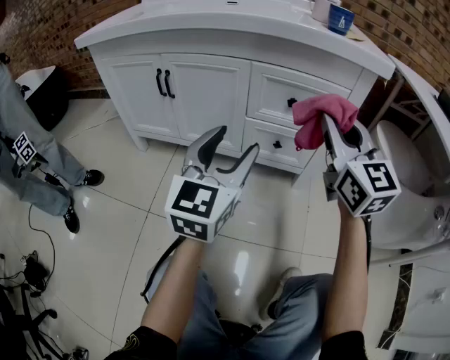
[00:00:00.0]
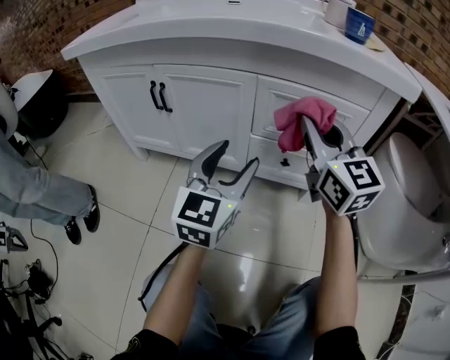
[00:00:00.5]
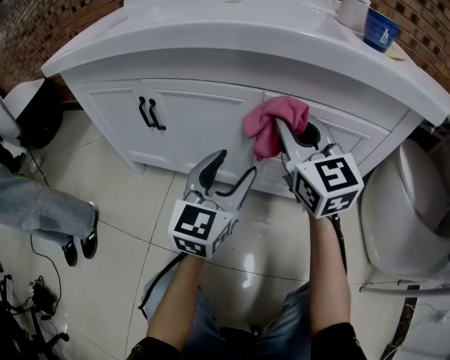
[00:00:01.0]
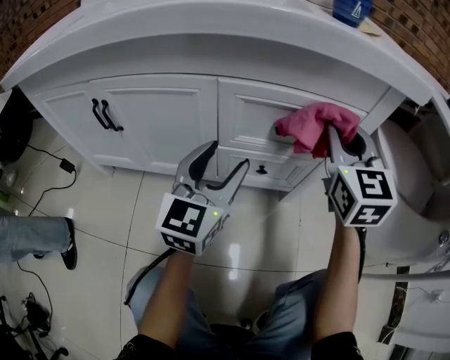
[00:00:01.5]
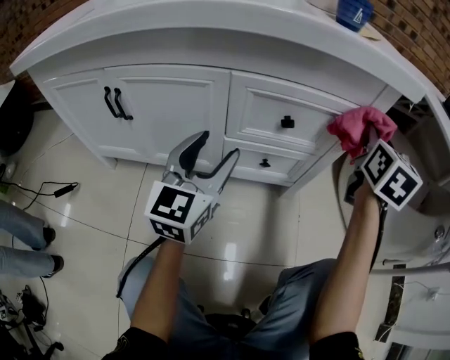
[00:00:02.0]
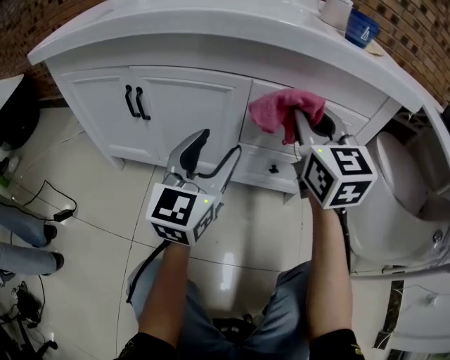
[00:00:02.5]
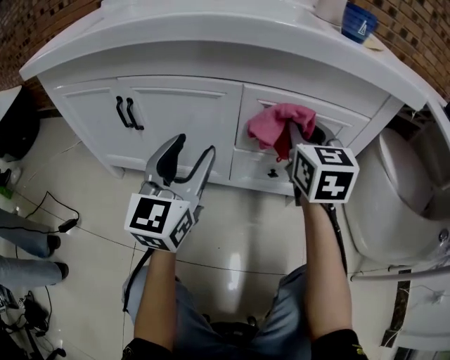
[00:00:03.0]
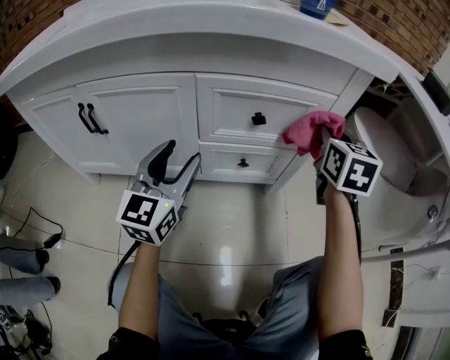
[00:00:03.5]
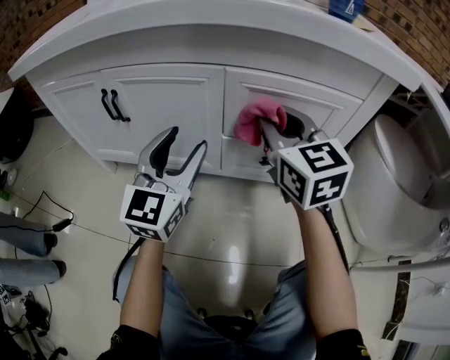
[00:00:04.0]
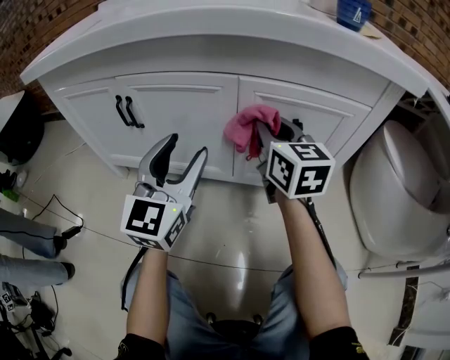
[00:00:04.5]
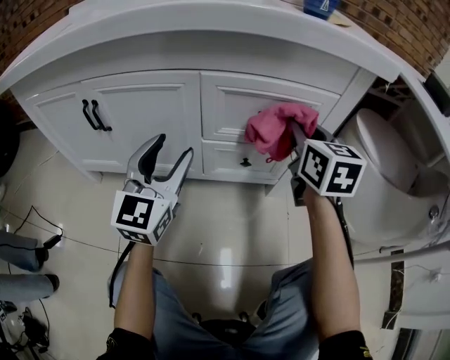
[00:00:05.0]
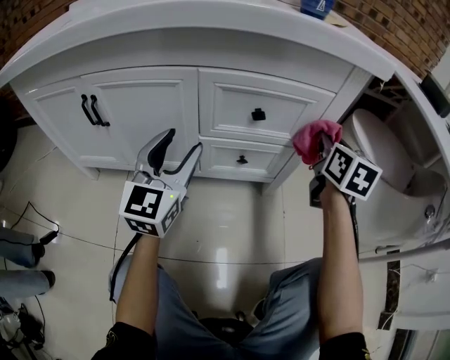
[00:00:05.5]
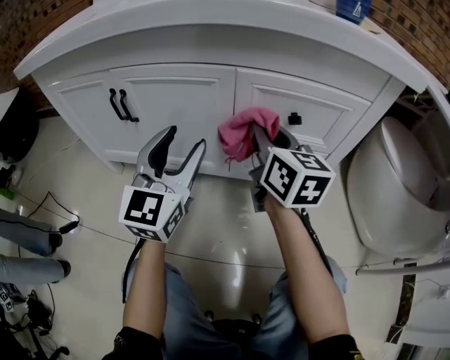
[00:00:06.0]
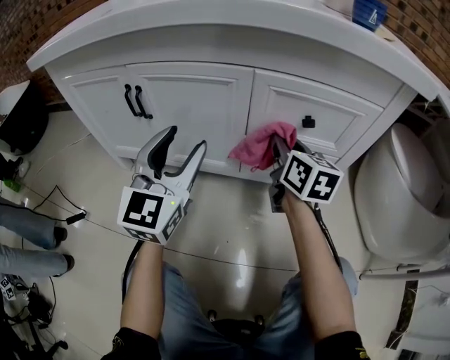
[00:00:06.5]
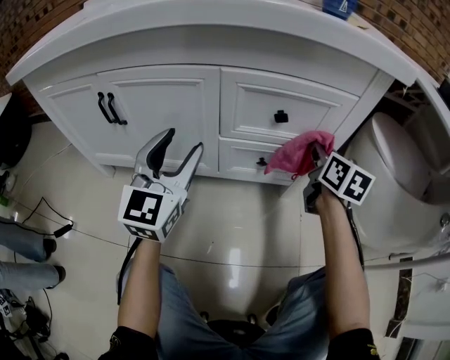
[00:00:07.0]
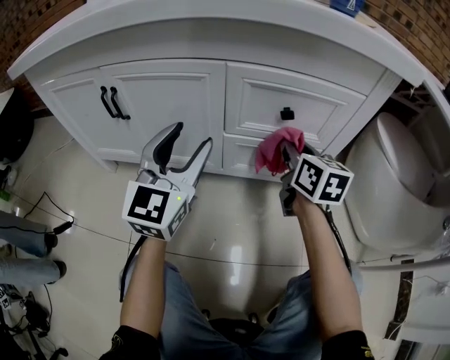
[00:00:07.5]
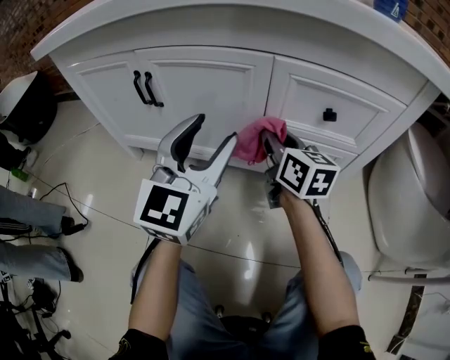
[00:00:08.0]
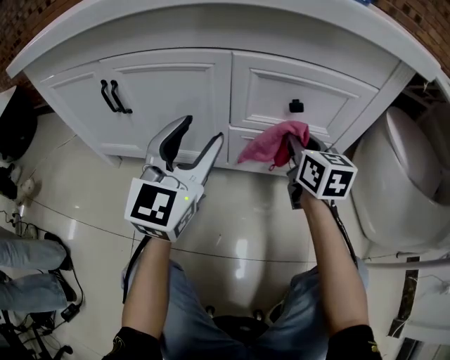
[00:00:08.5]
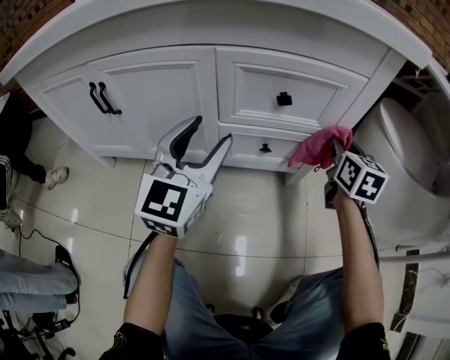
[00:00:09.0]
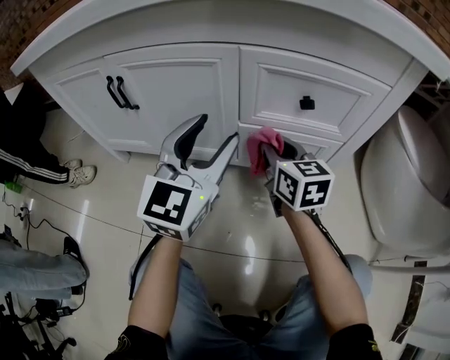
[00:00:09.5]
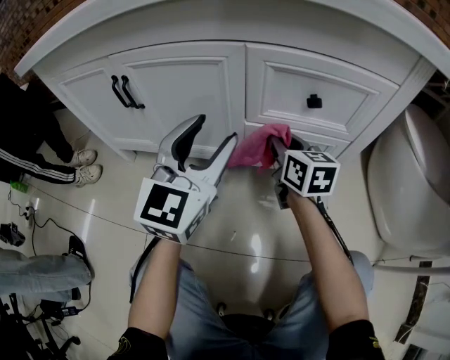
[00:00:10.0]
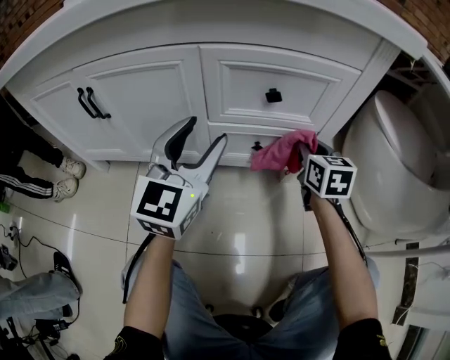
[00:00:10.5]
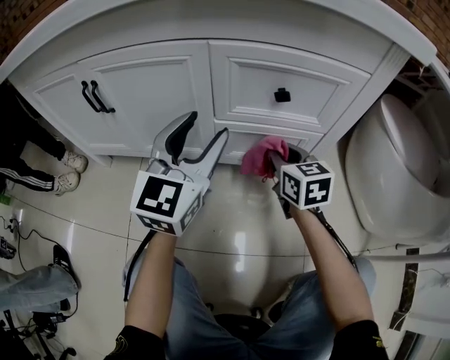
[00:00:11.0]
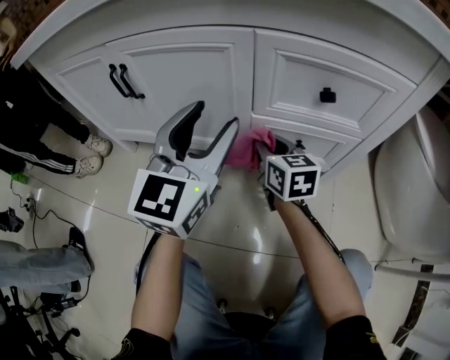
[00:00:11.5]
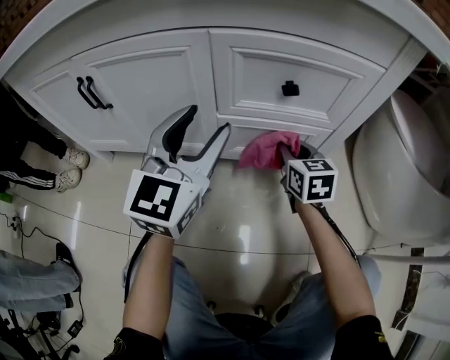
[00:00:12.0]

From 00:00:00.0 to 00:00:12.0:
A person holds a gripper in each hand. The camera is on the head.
From 00:00:00.0 to 00:00:02.0: The right gripper changes place by about 25 cm, and swivels some 50 degrees; the left gripper ends up some 15 cm from where it was.
From 00:00:02.0 to 00:00:04.0: The left gripper moves to the left, roughly 5 cm, while the right gripper moves left and right over approximately 25 cm, changing direction 2 times, and changes its angle by roughly 40 degrees.
From 00:00:04.0 to 00:00:06.0: The right gripper travels to the right and back again, roughly 25 cm each way, and rotates some 30 degrees.
From 00:00:06.0 to 00:00:08.0: The right gripper is displaced downward by approximately 10 cm, and reaches some 20 cm to the right, then returns.
From 00:00:08.0 to 00:00:10.0: The right gripper goes some 5 cm downward, and travels to the right and back again, some 30 cm each way.
From 00:00:10.0 to 00:00:12.0: The left gripper moves left and right over roughly 5 cm, changing direction 2 times. Meanwhile the right gripper swings left and right, approximately 20 cm each way, with 2 reversals.

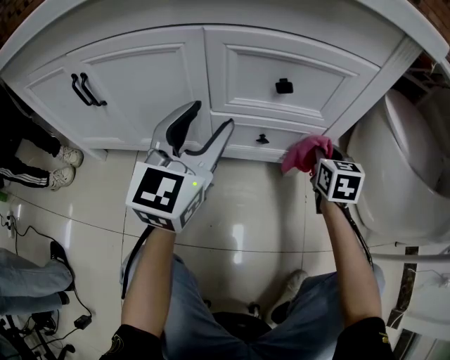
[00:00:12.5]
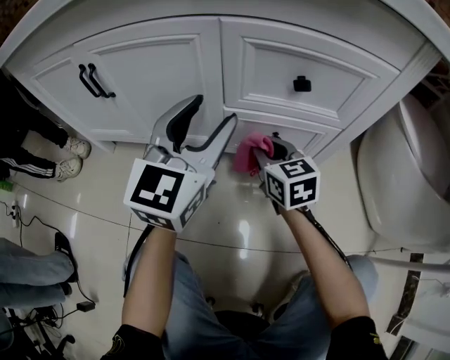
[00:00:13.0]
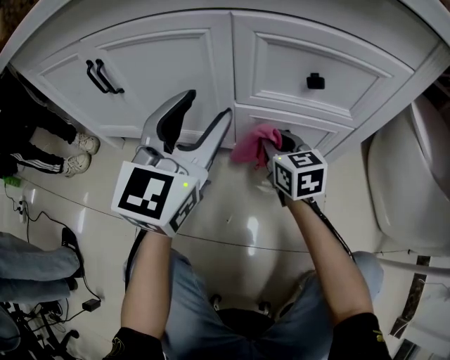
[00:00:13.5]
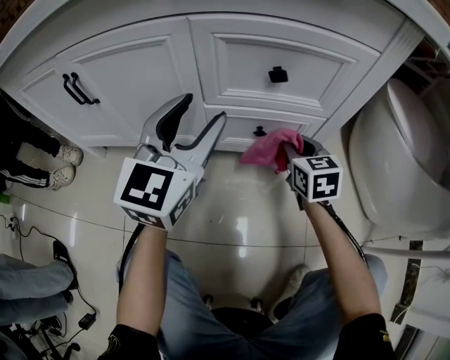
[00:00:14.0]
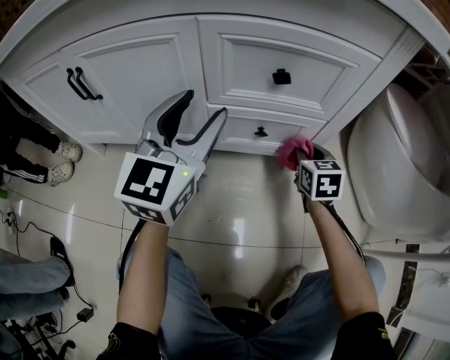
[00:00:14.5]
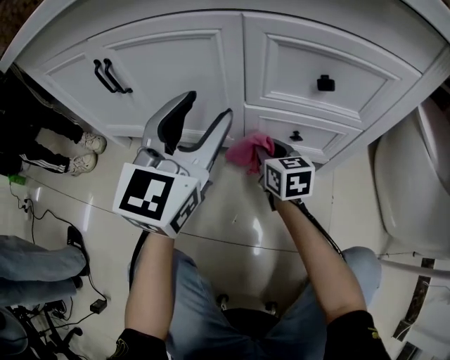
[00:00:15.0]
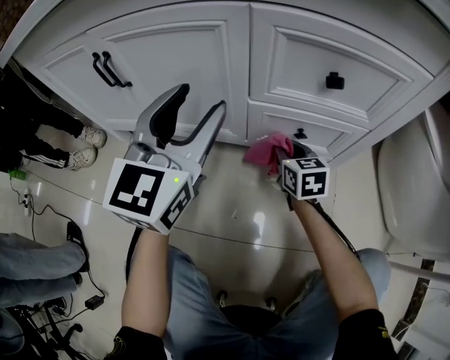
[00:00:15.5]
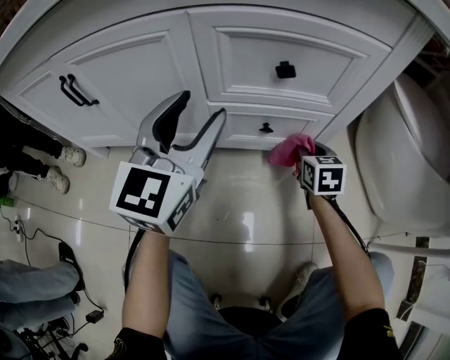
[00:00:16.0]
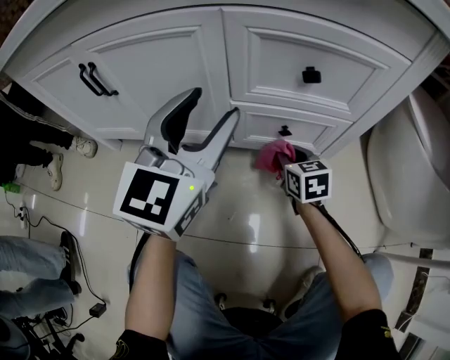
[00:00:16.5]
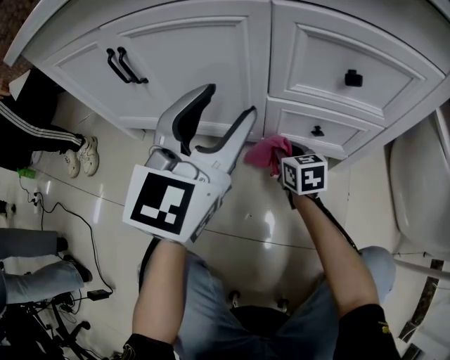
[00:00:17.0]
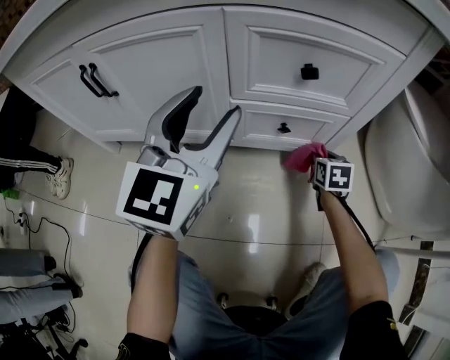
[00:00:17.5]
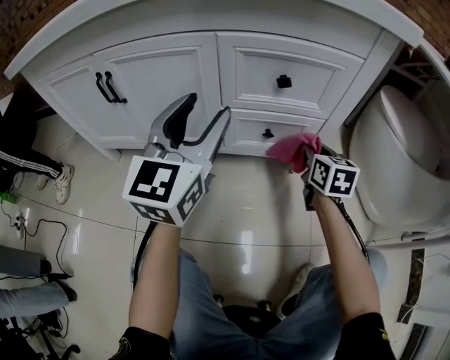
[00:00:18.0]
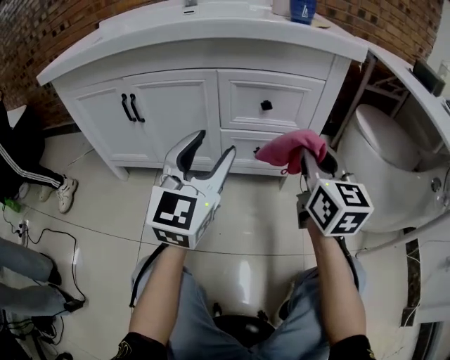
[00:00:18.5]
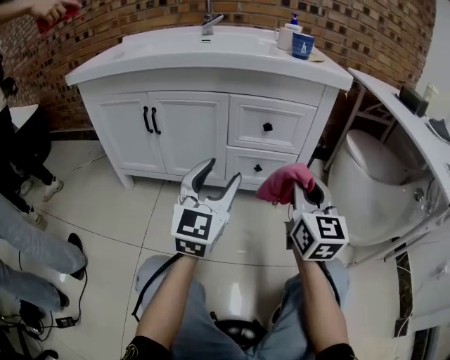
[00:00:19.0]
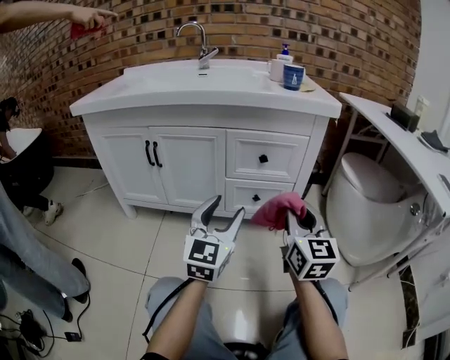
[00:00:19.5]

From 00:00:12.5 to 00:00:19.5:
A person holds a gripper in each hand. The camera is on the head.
From 00:00:12.5 to 00:00:14.5: The right gripper travels to the left and back again, some 20 cm each way.
From 00:00:14.5 to 00:00:16.0: The right gripper reaches some 20 cm to the left, then returns.
From 00:00:16.0 to 00:00:17.5: The right gripper reaches about 20 cm to the left, then returns.
From 00:00:17.5 to 00:00:19.5: The left gripper heads backward, covering some 15 cm. The right gripper travels upward and backward by about 40 cm, and tips its fingers upward by roughly 50 degrees.

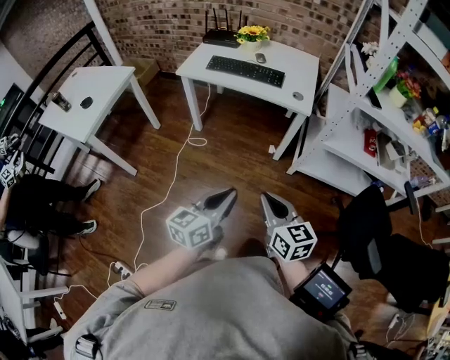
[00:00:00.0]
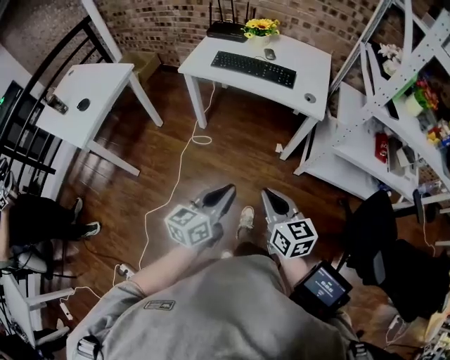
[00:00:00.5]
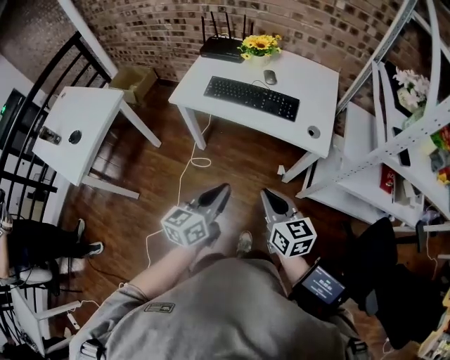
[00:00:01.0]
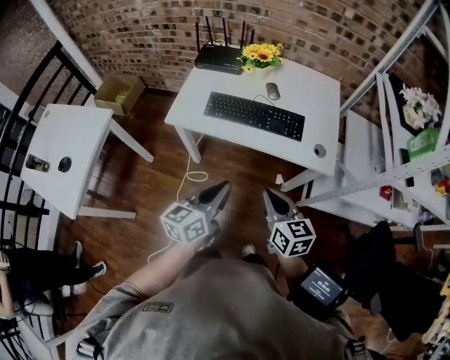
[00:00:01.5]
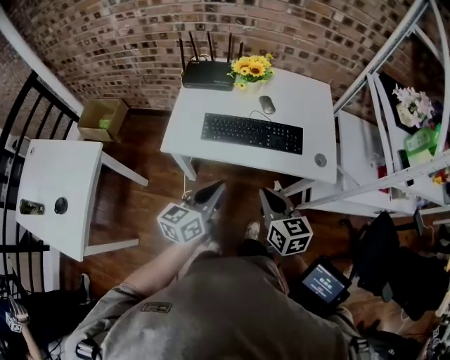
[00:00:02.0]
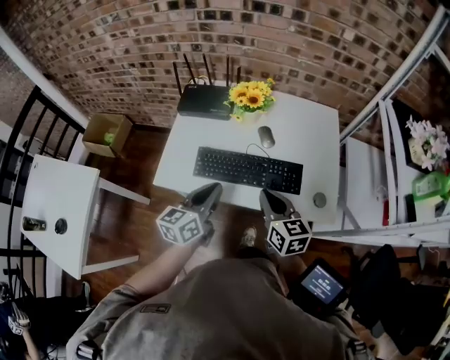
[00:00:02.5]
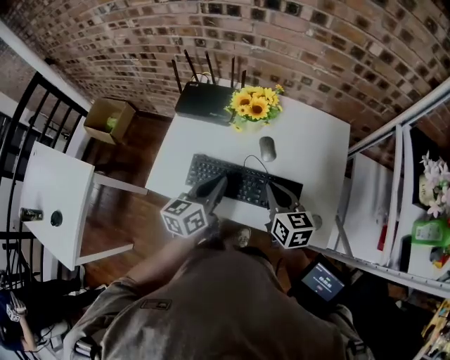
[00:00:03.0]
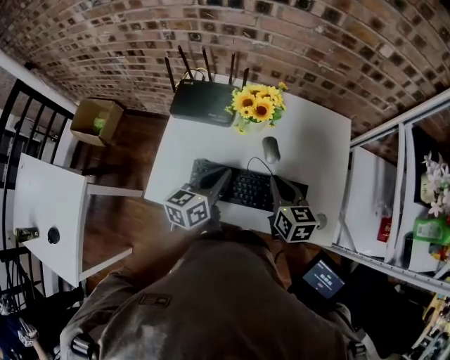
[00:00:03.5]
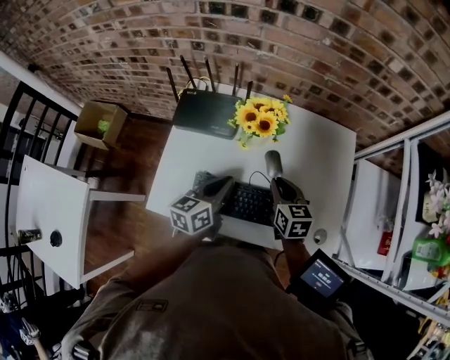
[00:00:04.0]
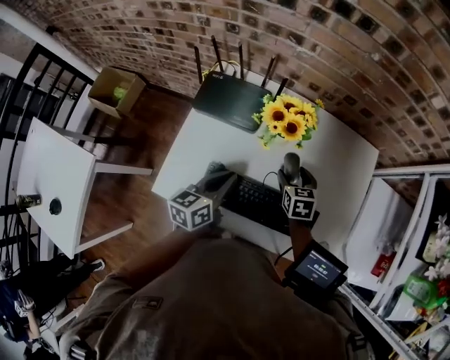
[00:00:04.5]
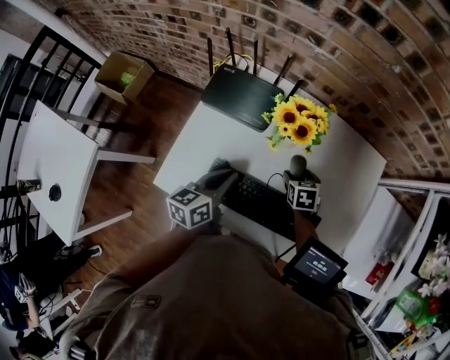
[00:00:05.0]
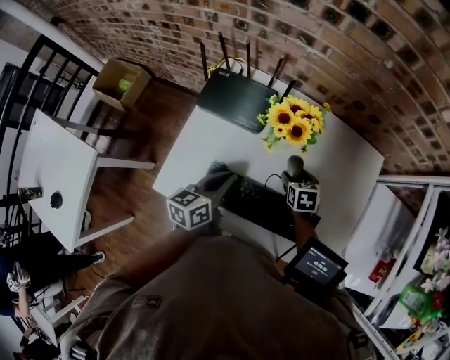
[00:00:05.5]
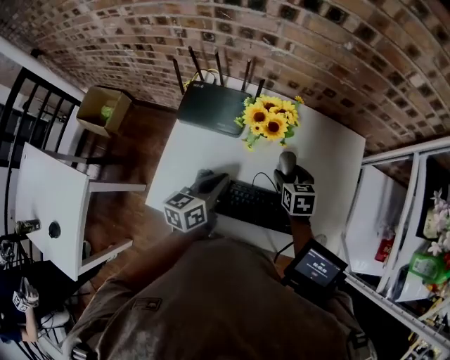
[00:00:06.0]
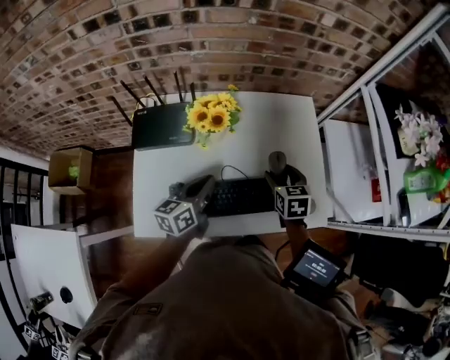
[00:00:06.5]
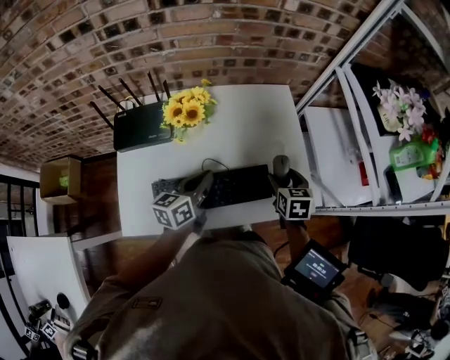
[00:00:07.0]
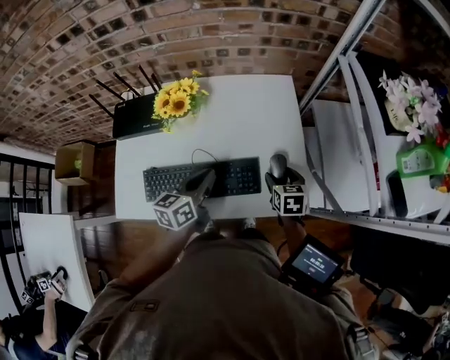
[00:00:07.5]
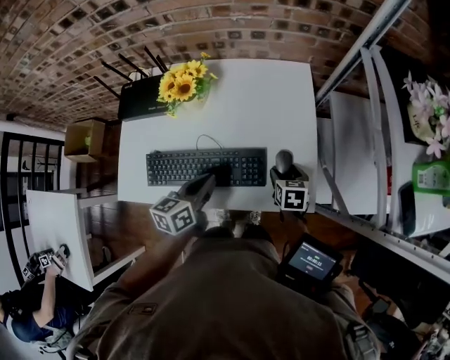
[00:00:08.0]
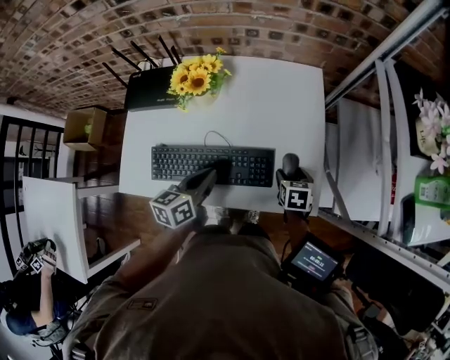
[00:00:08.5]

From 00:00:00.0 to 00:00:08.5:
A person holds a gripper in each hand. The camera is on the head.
From 00:00:00.0 to 00:00:02.0: The two grippers travel together, forward, about 50 cm.
From 00:00:02.0 to 00:00:04.0: Both grippers move forward, about 35 cm.
From 00:00:04.0 to 00:00:06.5: The right gripper travels to the right by some 10 cm, travels downward and back again, approximately 15 cm each way, changes its angle by approximately 20 degrees, and opens up.
From 00:00:06.5 to 00:00:08.5: The right gripper moves to the right and downward, some 20 cm, while the left gripper goes roughly 10 cm to the right and backward.
